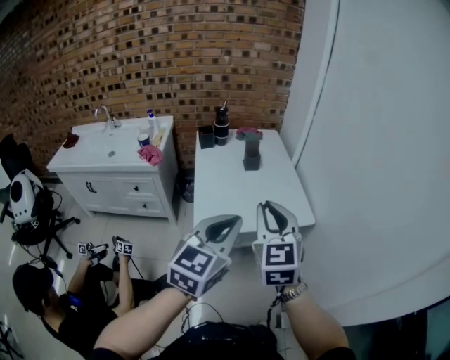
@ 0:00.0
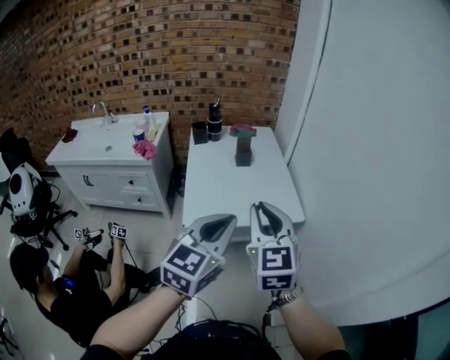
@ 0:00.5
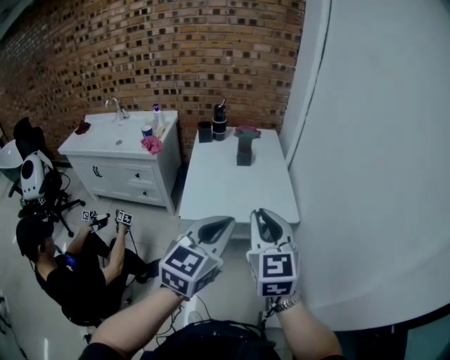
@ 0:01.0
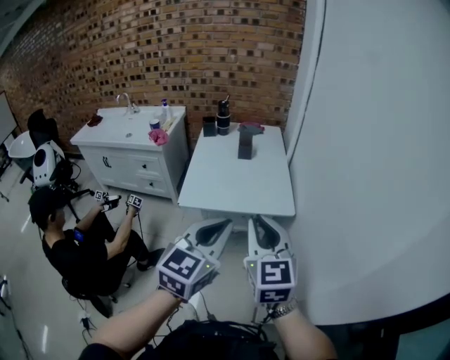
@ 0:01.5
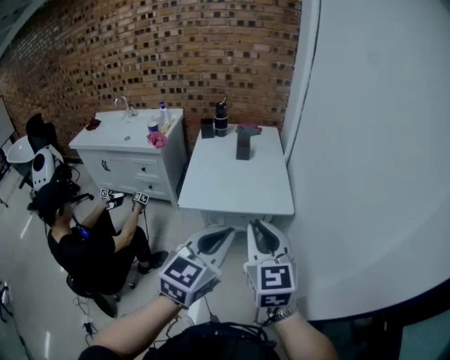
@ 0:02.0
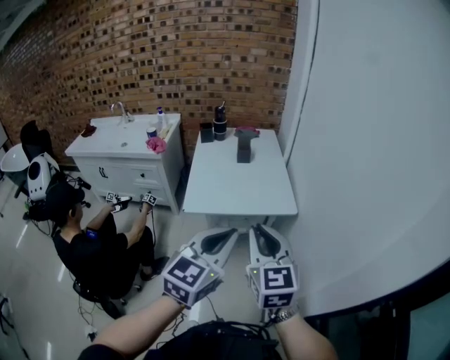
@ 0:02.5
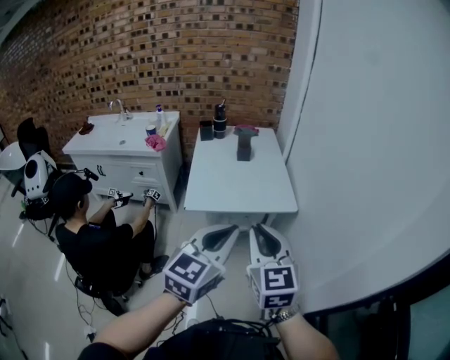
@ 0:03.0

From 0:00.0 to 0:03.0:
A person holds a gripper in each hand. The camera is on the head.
From 0:00.0 to 0:01.5: The grippers both shift to the right and backward by some 20 cm.
From 0:01.5 to 0:03.0: The left gripper goes roughly 5 cm to the left. The right gripper goes approximately 10 cm to the left and backward.

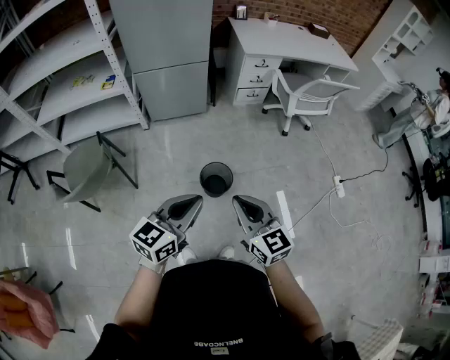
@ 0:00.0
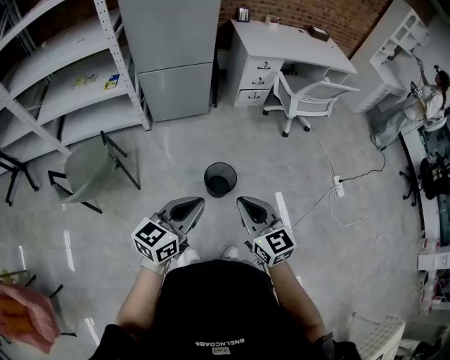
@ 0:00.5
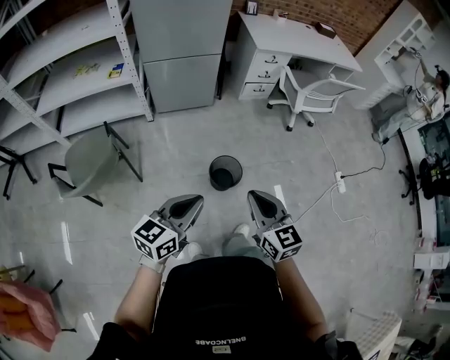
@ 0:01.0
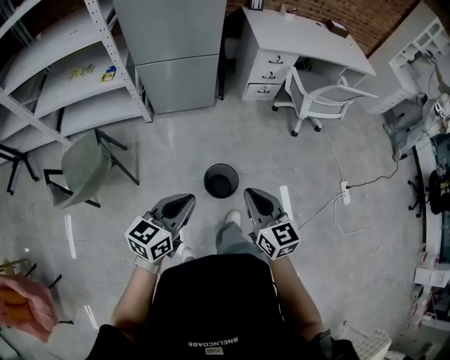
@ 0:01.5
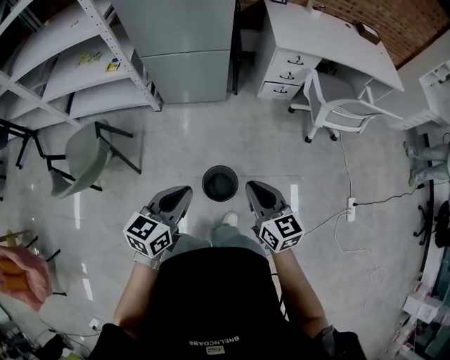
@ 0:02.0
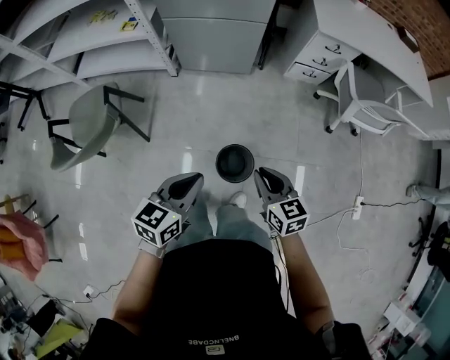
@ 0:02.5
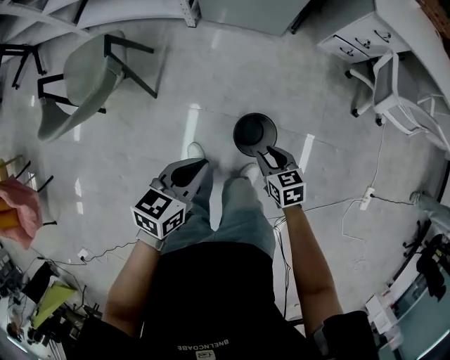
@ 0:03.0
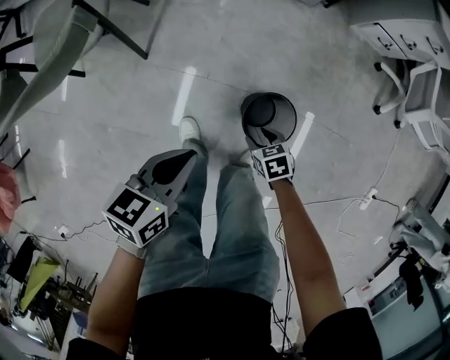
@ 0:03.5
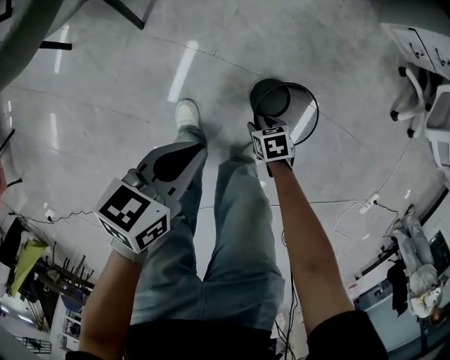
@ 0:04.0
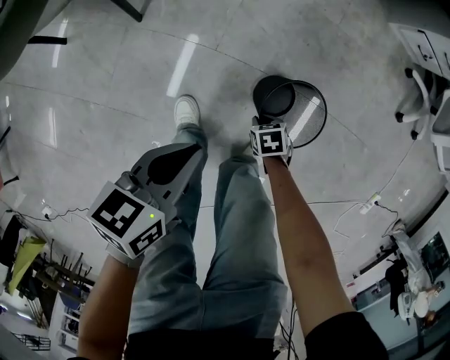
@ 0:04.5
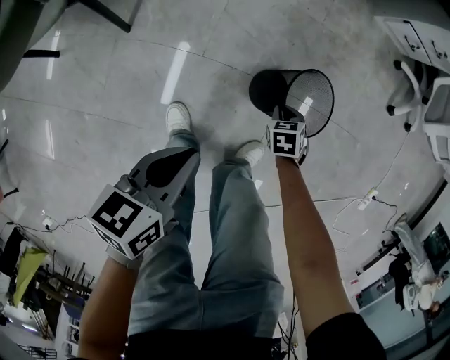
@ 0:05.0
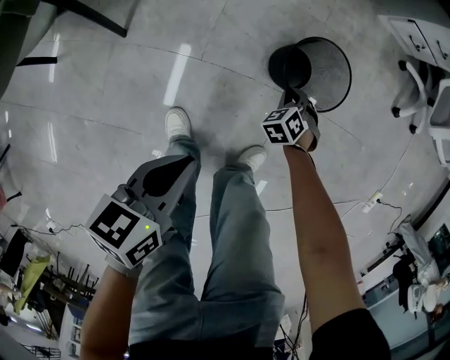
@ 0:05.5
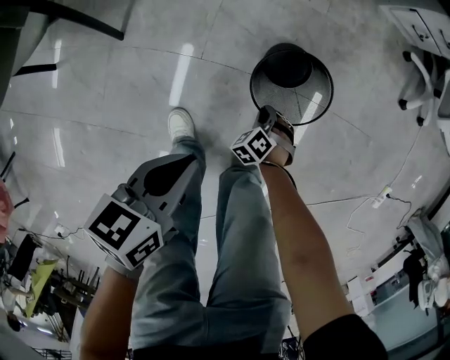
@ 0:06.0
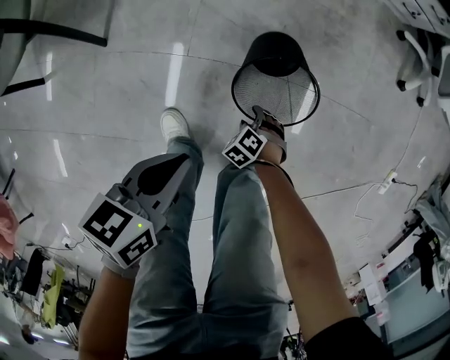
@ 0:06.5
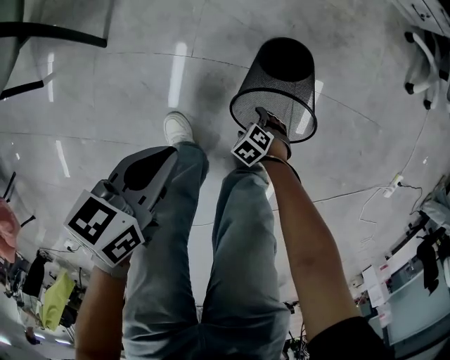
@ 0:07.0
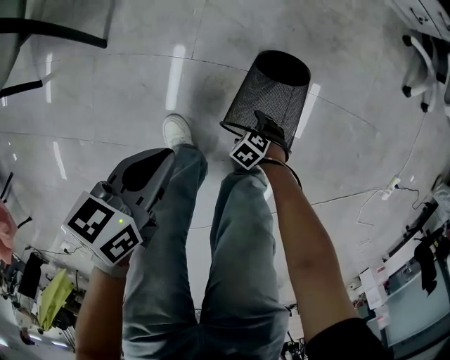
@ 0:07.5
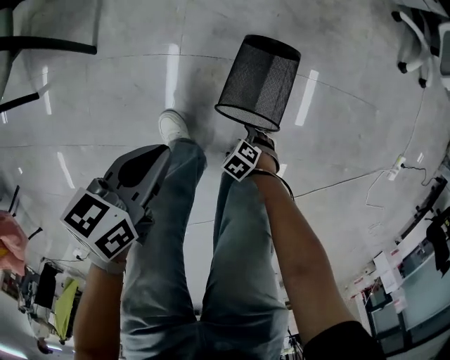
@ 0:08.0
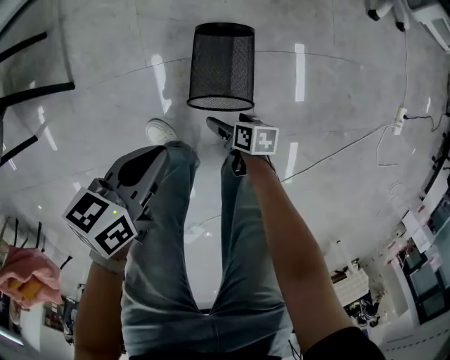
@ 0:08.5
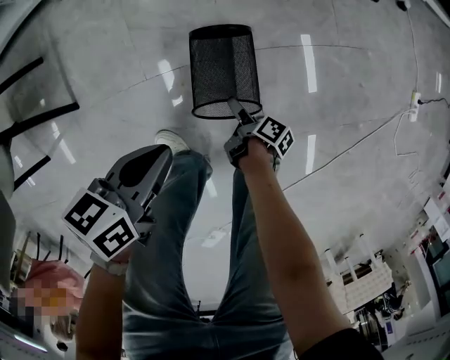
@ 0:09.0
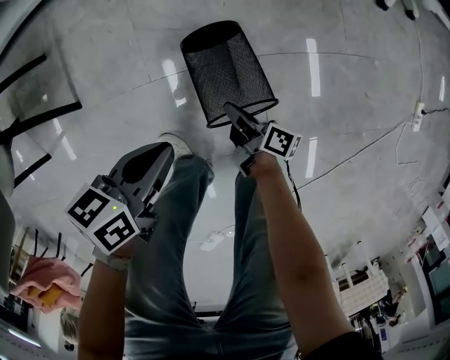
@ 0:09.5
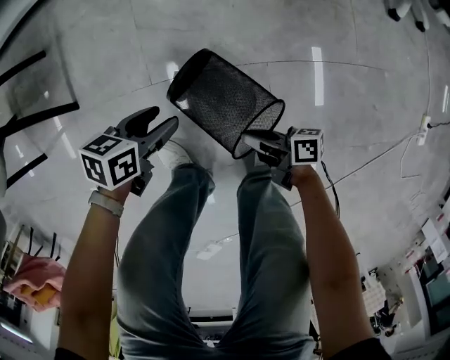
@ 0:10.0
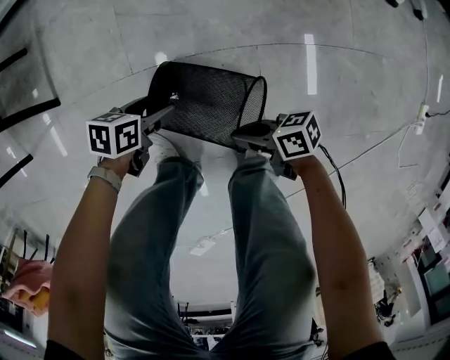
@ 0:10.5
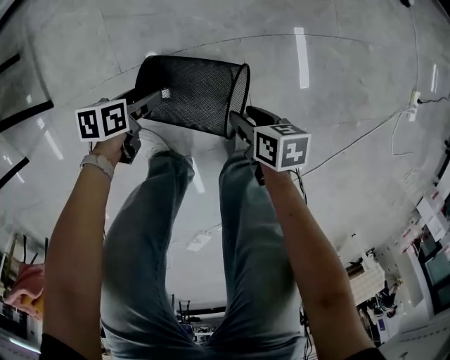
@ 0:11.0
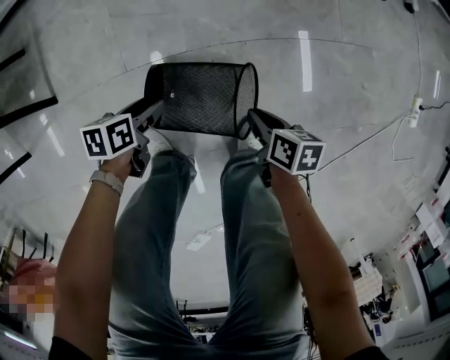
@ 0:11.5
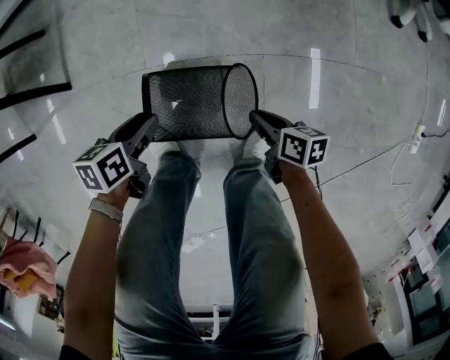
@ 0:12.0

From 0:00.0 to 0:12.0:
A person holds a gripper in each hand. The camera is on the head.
From 0:00.0 to 0:02.0: The two grippers go about 20 cm forward. The left gripper swivels roughly 20 degrees.
From 0:02.0 to 0:04.0: The right gripper shifts roughly 70 cm downward, tilts its fingers roughly 50 degrees downward, and opens up; the left gripper is displaced downward by roughly 40 cm, and rotates roughly 40 degrees.
From 0:04.0 to 0:06.0: The right gripper swings up and down, roughly 5 cm each way, with 2 reversals, swivels about 50 degrees, and closes up, while the left gripper heads downward, covering roughly 5 cm.
From 0:06.0 to 0:08.0: The right gripper changes place by some 20 cm, changes its angle by some 30 degrees, and opens. Meanwhile the left gripper heads downward, covering about 5 cm.
From 0:08.0 to 0:10.0: The left gripper heads downward, covering roughly 15 cm, changes its angle by roughly 20 degrees, and opens its fingers, while the right gripper moves roughly 15 cm, tilts its fingers approximately 60 degrees upward, and closes up.
From 0:10.0 to 0:12.0: The left gripper goes downward and returns, about 10 cm each way, and rotates some 20 degrees. Meanwhile the right gripper ends up some 5 cm from where it was, and changes its angle by about 30 degrees.

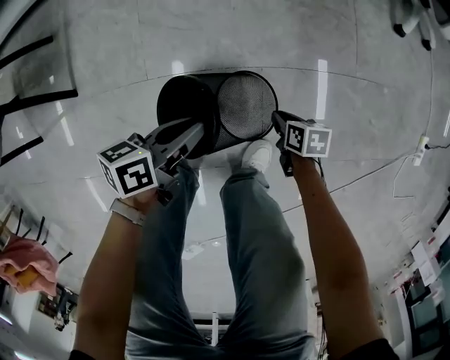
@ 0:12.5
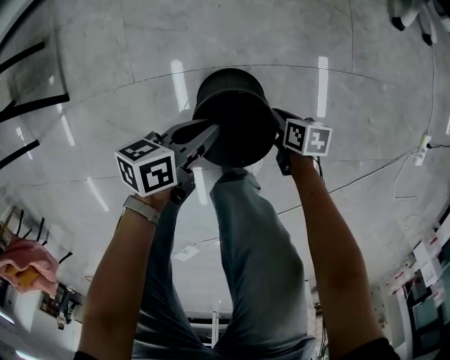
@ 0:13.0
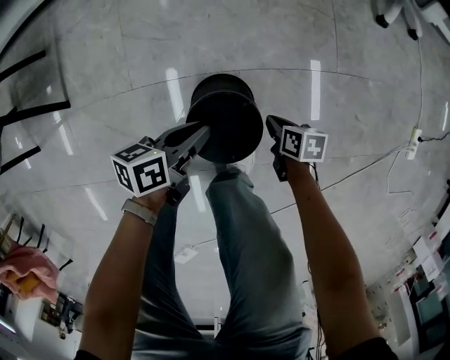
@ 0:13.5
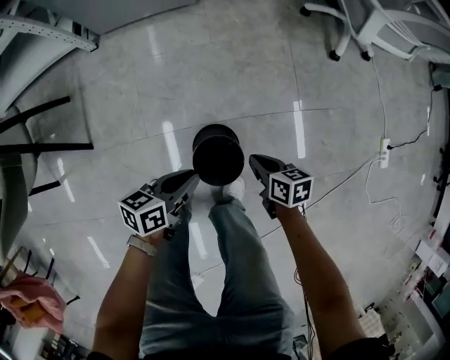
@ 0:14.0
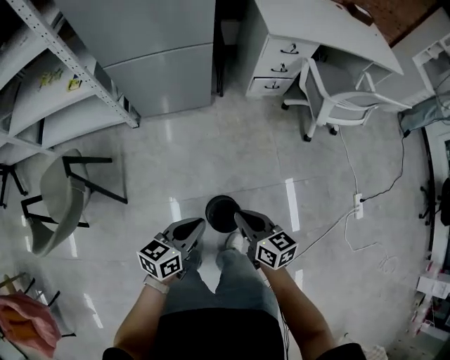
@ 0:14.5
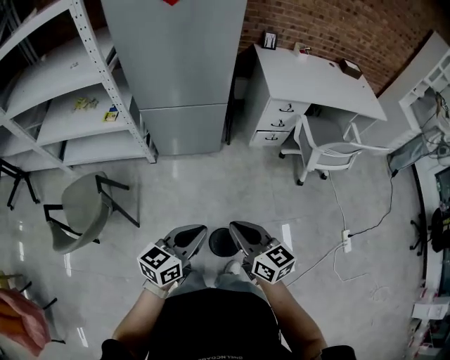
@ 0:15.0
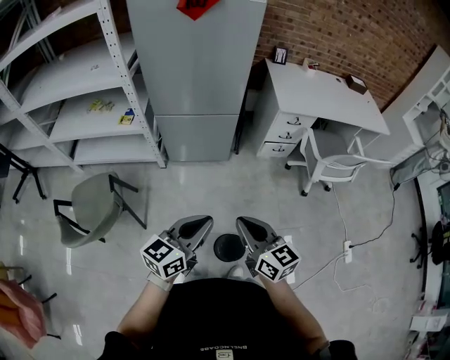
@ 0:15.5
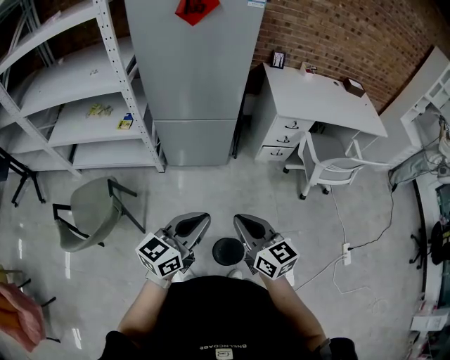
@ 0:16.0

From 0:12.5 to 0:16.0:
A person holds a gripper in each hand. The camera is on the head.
From 0:12.5 to 0:14.5: Both grippers travel together upward, approximately 50 cm. The right gripper points its fingers roughly 40 degrees further upward; the left gripper rotates some 30 degrees.
From 0:14.5 to 0:16.0: The grippers both shift upward by about 30 cm. The left gripper rotates about 30 degrees. Meanwhile the right gripper changes its angle by approximately 20 degrees.

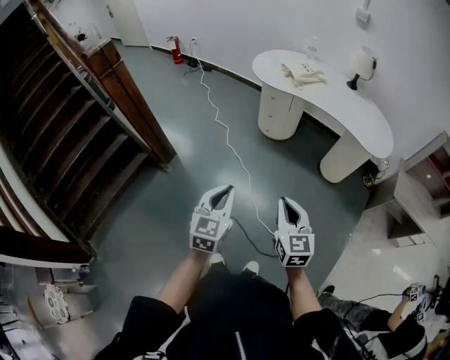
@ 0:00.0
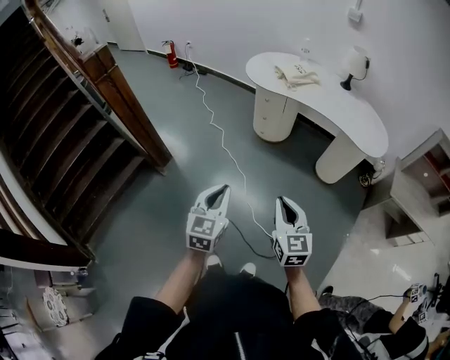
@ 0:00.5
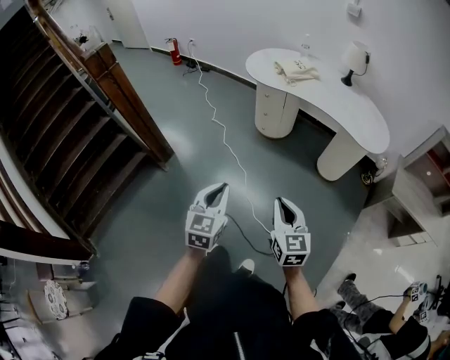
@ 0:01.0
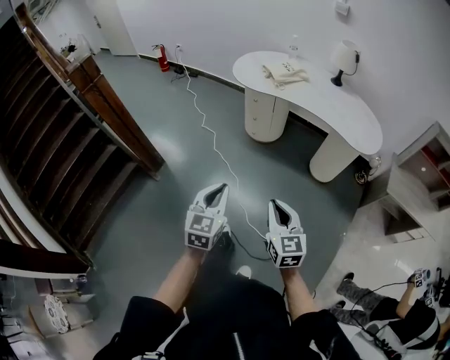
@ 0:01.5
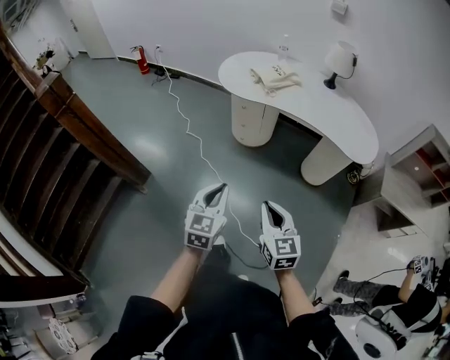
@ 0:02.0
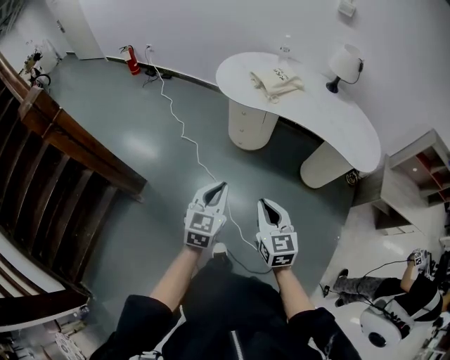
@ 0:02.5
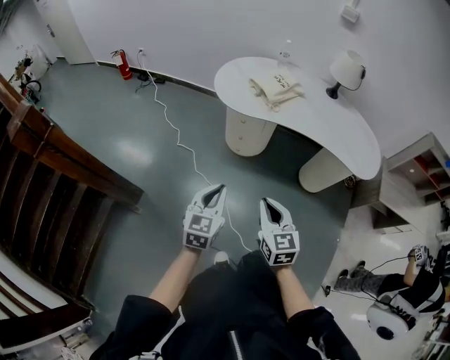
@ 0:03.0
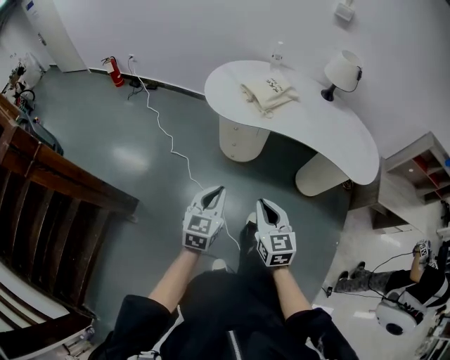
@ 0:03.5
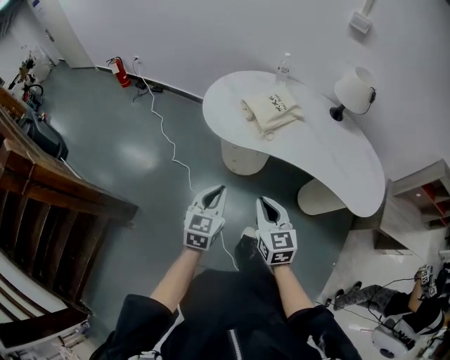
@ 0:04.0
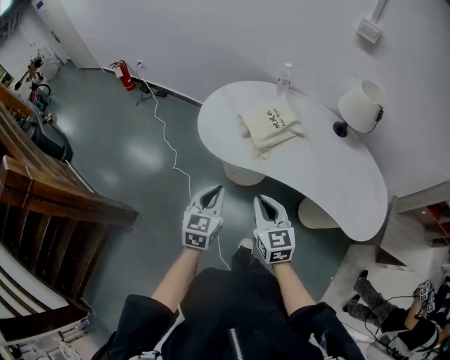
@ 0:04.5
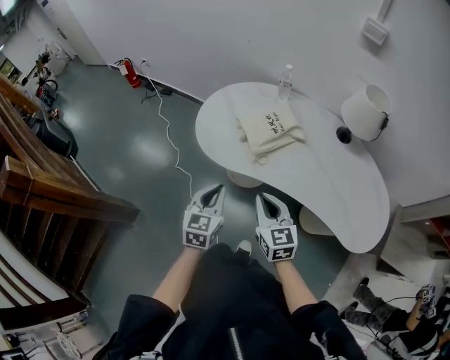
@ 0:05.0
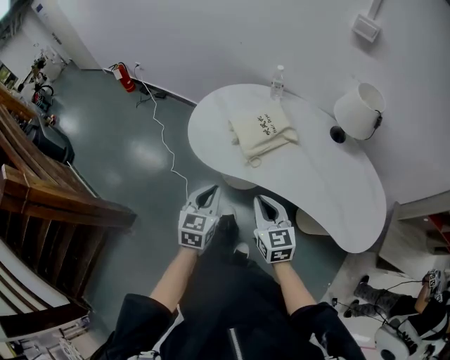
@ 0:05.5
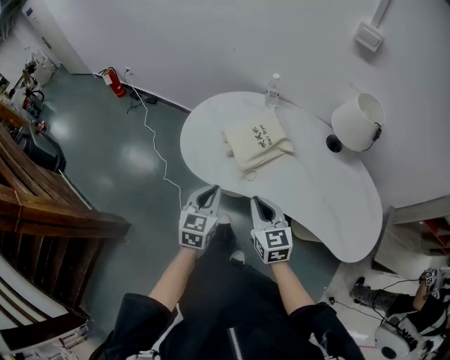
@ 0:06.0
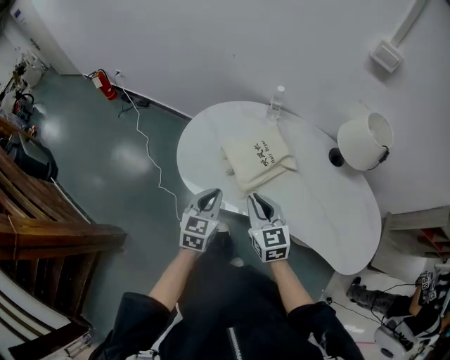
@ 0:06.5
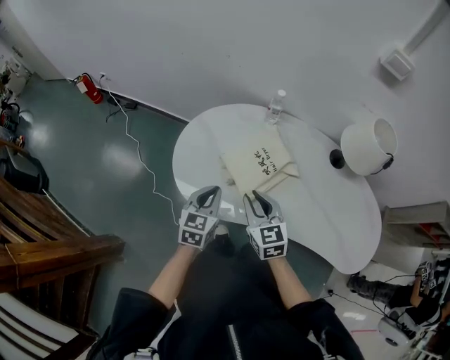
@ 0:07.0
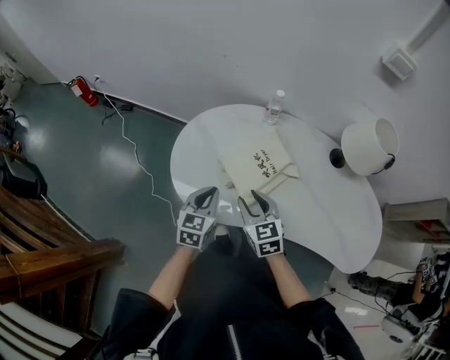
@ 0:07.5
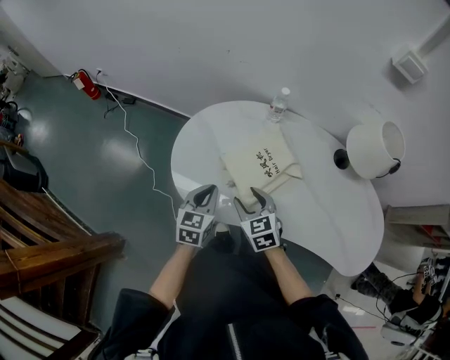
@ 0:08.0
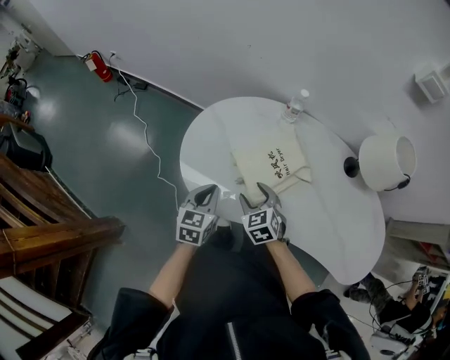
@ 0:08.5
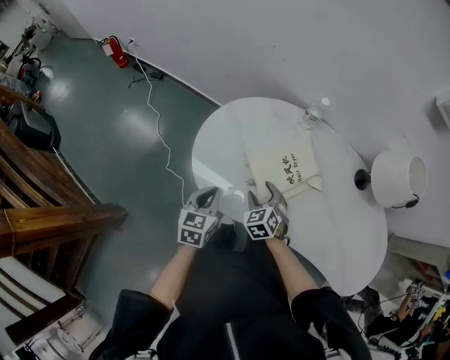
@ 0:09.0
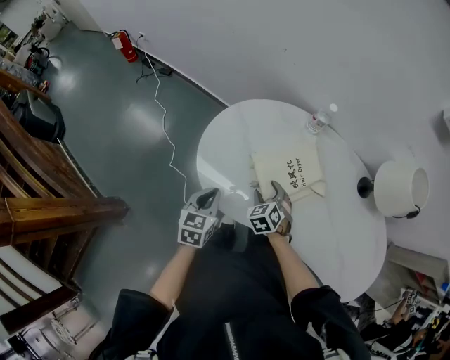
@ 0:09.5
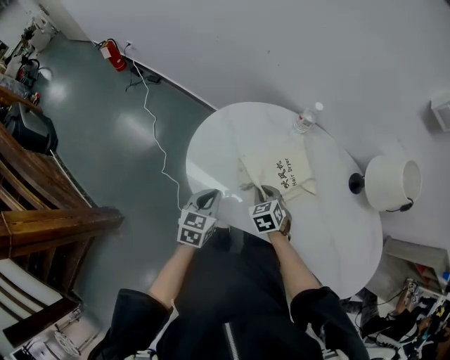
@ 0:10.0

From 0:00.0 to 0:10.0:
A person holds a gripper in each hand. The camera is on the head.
From 0:00.0 to 0:02.0: Both grippers move forward, roughly 15 cm.
From 0:02.0 to 0:04.0: Both grippers travel together forward, roughly 35 cm.
From 0:04.0 to 0:06.0: The grippers both shift forward and to the right by about 25 cm.
From 0:06.0 to 0:08.0: The right gripper shifts some 20 cm forward, downward and to the left, and opens up; the left gripper is displaced forward and downward by approximately 20 cm.
From 0:08.0 to 0:10.0: The right gripper shifts some 10 cm downward, changes its angle by roughly 20 degrees, and closes its fingers.
